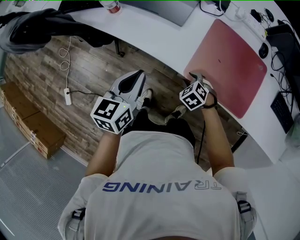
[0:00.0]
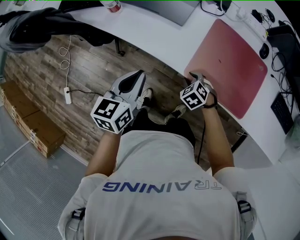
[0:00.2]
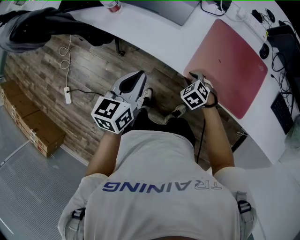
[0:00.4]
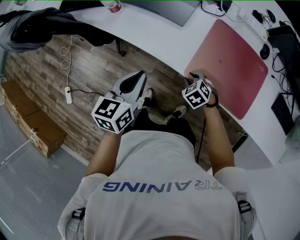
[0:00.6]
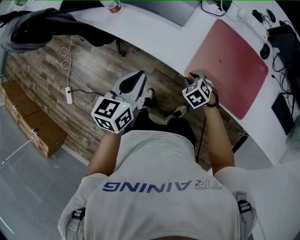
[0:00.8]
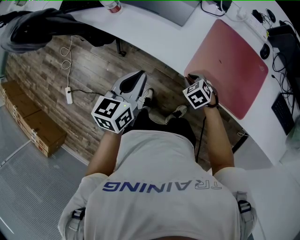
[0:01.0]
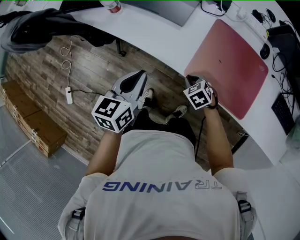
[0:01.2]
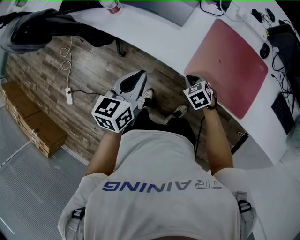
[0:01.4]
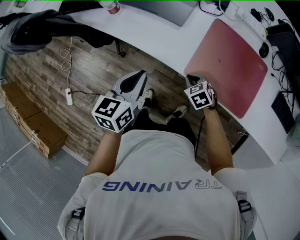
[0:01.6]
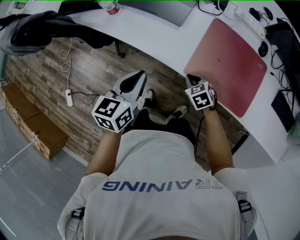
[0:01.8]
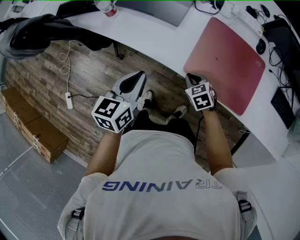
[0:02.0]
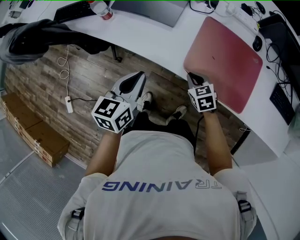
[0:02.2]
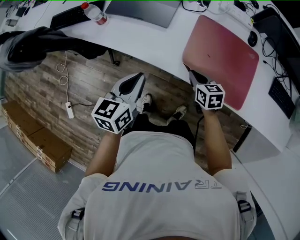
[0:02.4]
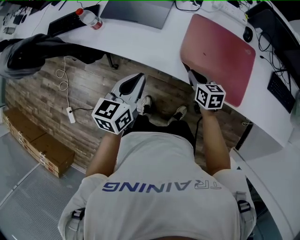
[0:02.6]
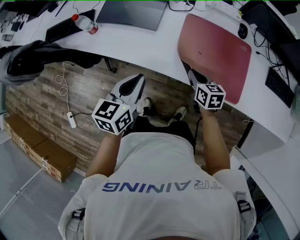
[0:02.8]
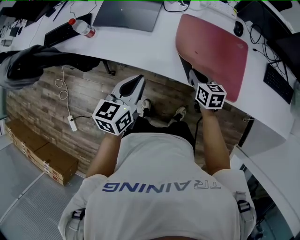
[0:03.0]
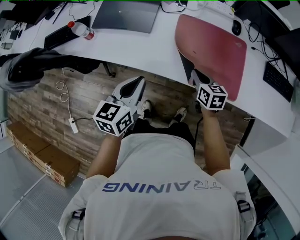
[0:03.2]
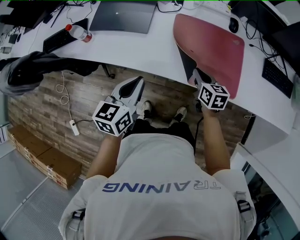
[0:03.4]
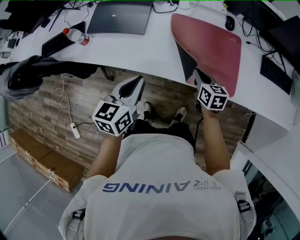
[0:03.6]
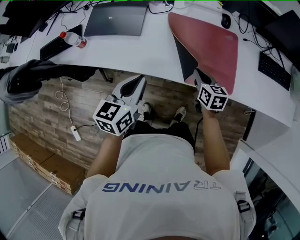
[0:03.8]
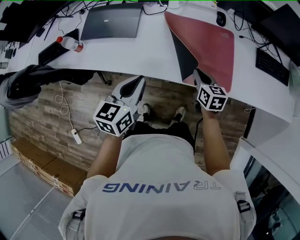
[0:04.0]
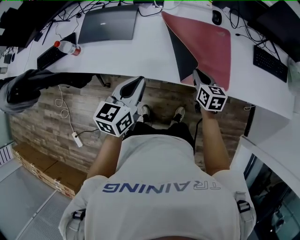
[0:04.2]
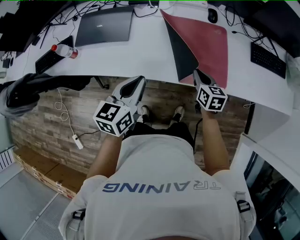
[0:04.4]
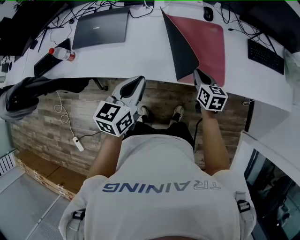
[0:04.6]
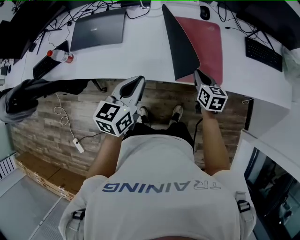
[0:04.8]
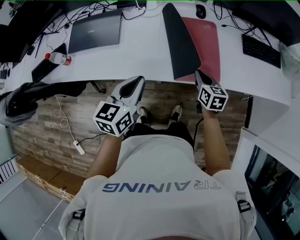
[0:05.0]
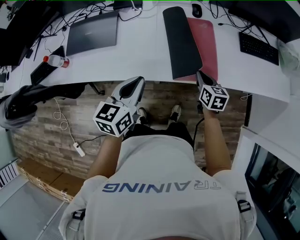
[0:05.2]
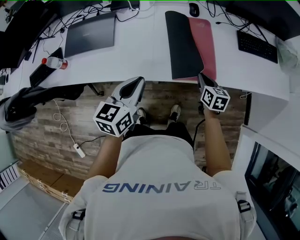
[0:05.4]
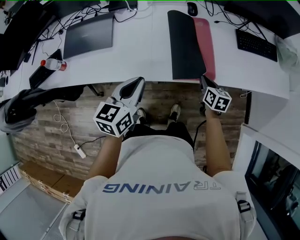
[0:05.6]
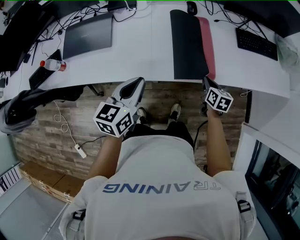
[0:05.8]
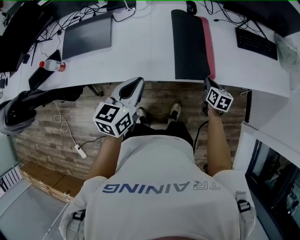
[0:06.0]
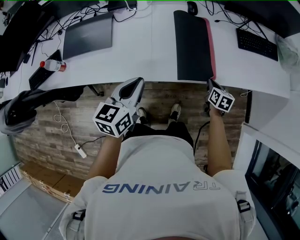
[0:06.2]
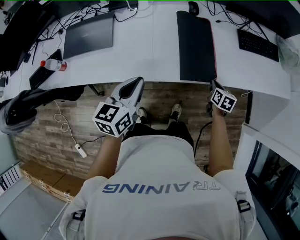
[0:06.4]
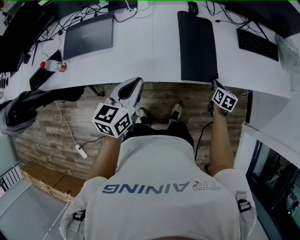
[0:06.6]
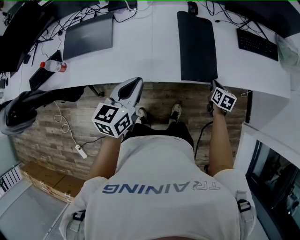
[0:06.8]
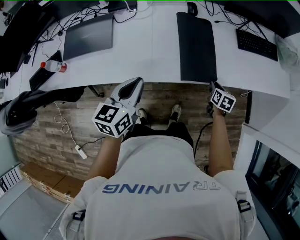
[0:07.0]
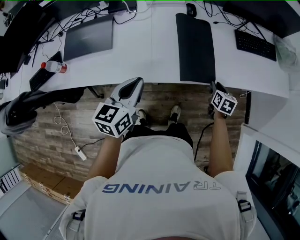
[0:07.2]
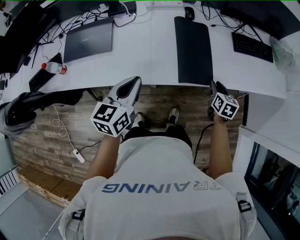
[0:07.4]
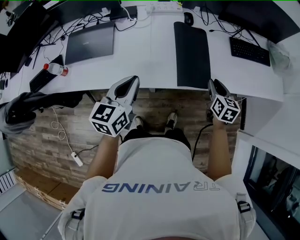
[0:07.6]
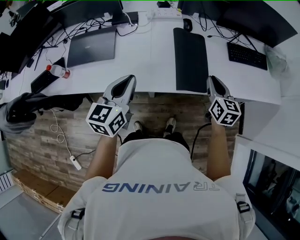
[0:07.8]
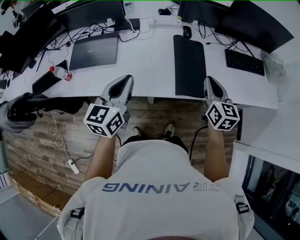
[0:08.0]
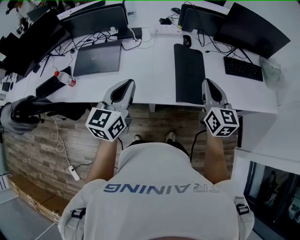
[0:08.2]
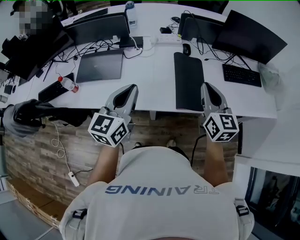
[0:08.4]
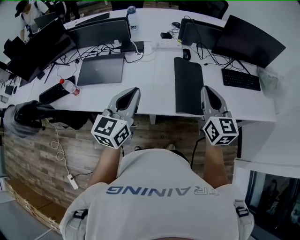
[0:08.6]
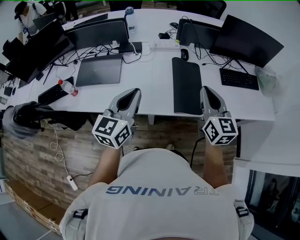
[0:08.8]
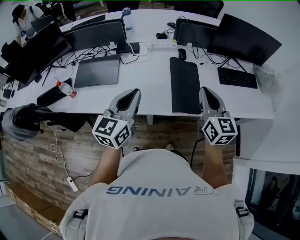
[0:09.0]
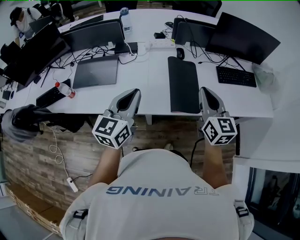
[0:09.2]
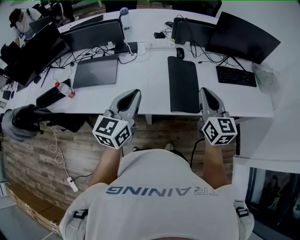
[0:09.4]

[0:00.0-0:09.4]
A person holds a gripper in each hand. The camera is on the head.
0:00.0 to 0:01.6: The right gripper closes up.
0:01.6 to 0:03.2: The right gripper goes about 15 cm to the right and upward, and twists roughly 40 degrees clockwise, seen from behind; the left gripper travels to the right by approximately 10 cm.
0:03.2 to 0:04.8: Both grippers travel together to the right, some 10 cm.
0:04.8 to 0:06.2: The right gripper goes about 15 cm to the right and downward, and changes its angle by roughly 20 degrees.
0:06.2 to 0:07.8: The left gripper travels upward by approximately 5 cm. Meanwhile the right gripper heads upward, covering some 20 cm, and changes its angle by roughly 30 degrees.
0:07.8 to 0:09.4: The left gripper travels upward by about 5 cm, while the right gripper moves upward, some 15 cm.

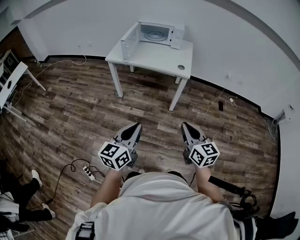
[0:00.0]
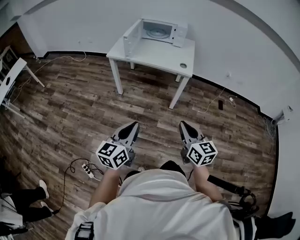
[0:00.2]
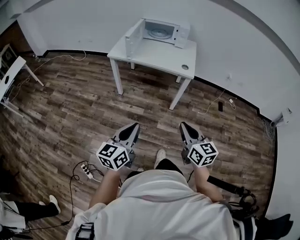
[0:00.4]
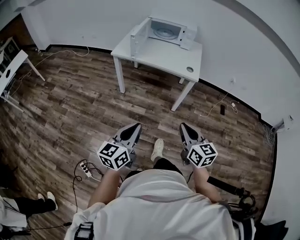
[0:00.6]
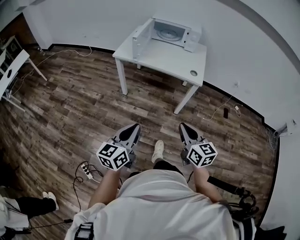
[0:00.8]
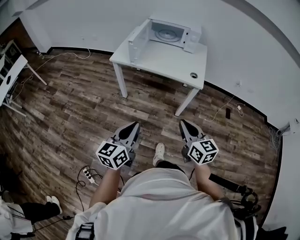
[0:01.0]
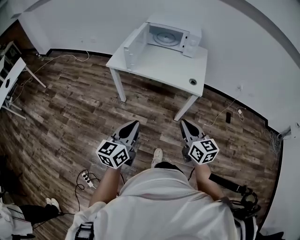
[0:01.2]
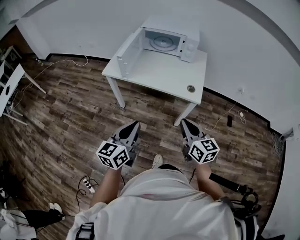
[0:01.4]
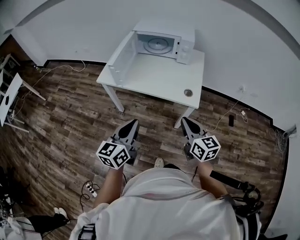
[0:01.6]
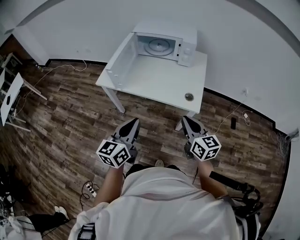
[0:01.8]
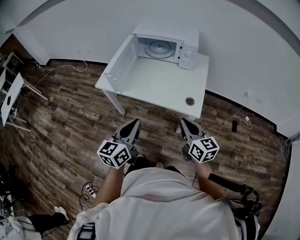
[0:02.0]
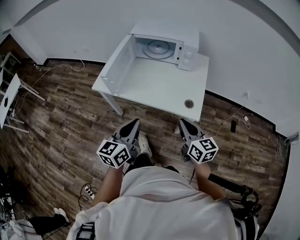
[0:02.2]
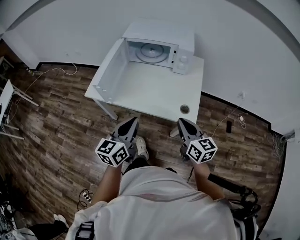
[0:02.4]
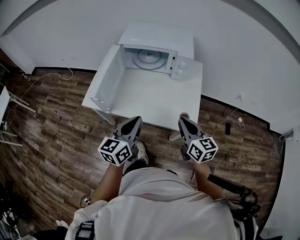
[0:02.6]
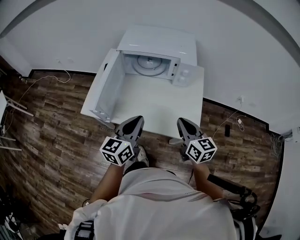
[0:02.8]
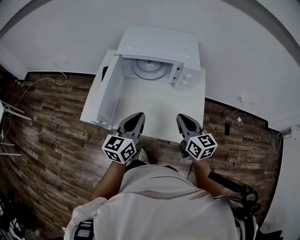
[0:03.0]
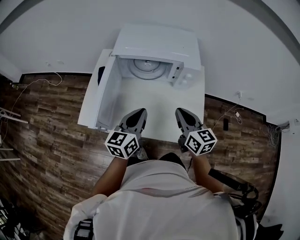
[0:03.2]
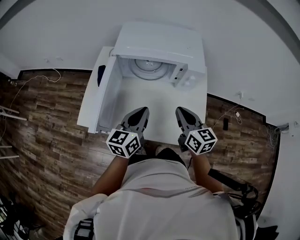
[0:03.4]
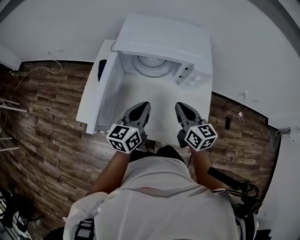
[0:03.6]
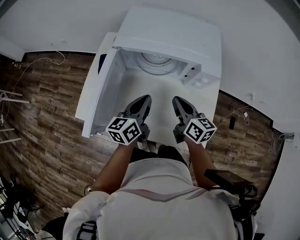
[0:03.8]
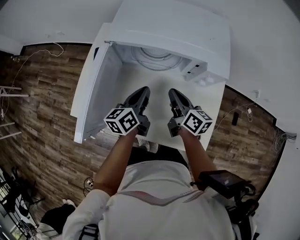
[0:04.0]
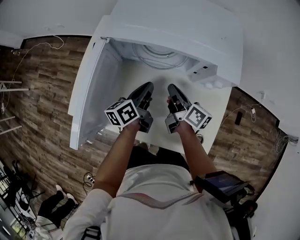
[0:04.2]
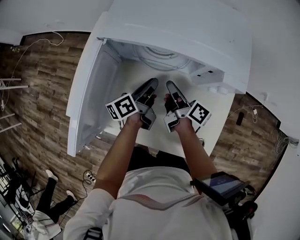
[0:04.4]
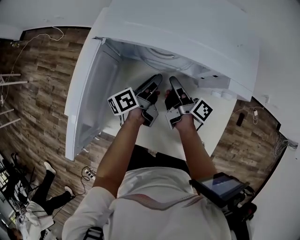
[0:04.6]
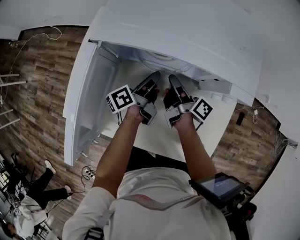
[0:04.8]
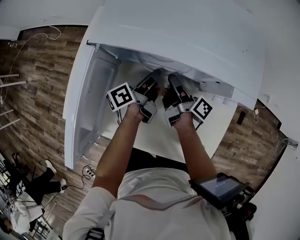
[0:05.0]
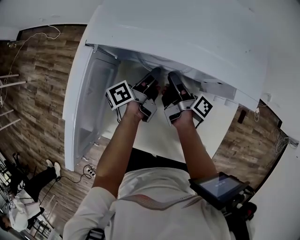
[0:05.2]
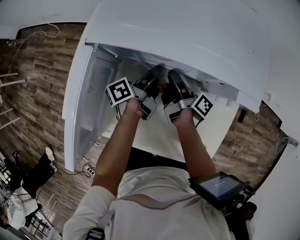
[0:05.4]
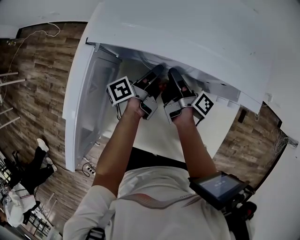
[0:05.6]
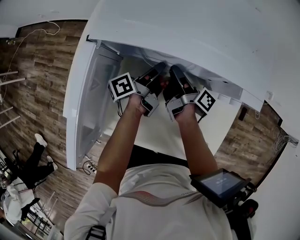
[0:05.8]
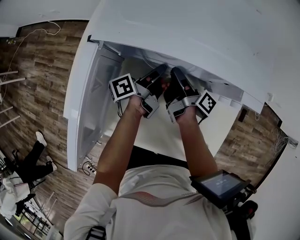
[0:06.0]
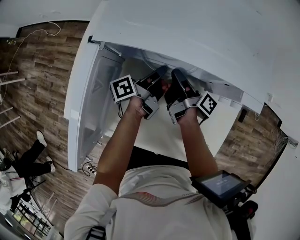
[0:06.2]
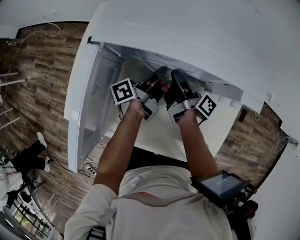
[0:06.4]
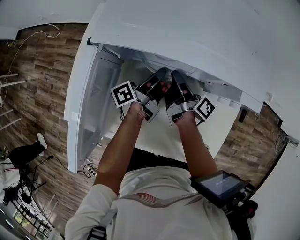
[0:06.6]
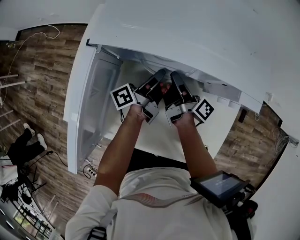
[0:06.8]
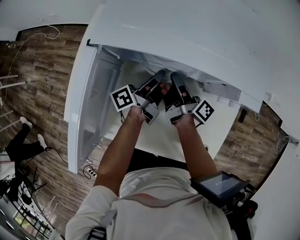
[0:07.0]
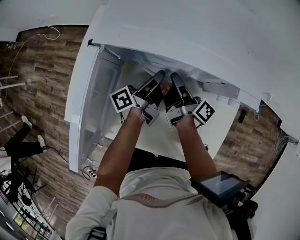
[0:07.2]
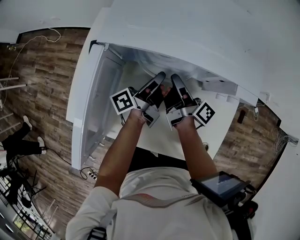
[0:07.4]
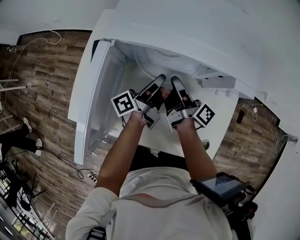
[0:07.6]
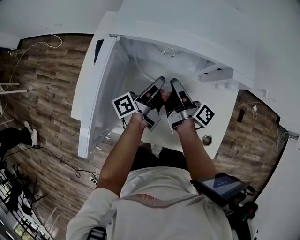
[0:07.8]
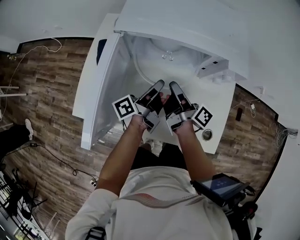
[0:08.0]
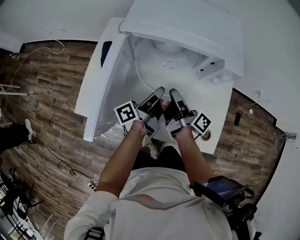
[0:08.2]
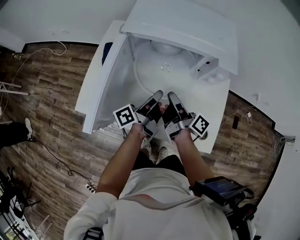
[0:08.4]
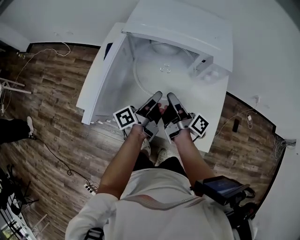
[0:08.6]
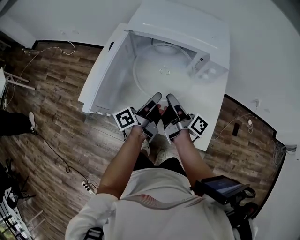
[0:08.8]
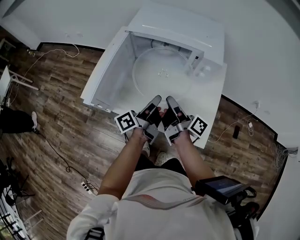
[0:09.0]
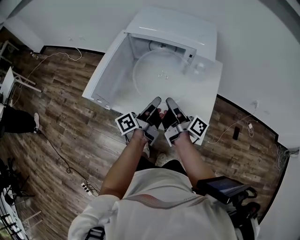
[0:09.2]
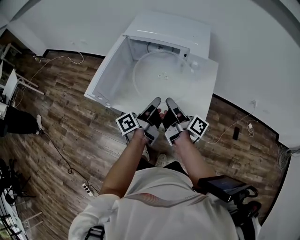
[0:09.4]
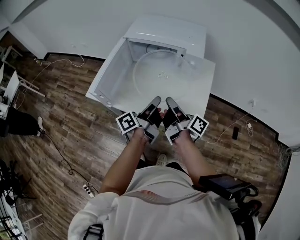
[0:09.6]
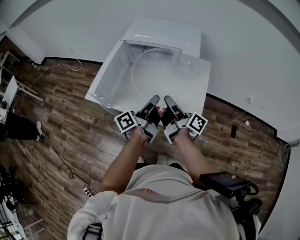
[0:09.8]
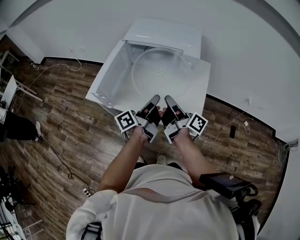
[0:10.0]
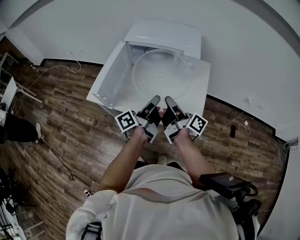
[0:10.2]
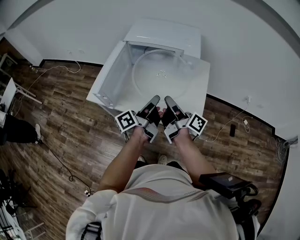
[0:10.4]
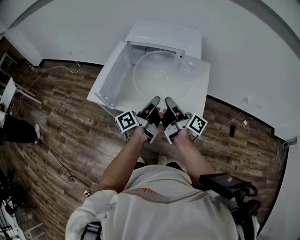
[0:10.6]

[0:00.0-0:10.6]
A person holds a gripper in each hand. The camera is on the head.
0:00.0 to 0:01.6: The two grippers go roughly 35 cm forward.
0:01.6 to 0:03.0: The two grippers go roughly 35 cm forward.
0:03.0 to 0:04.6: Both grippers move forward and downward, about 35 cm. The right gripper rolls clockwise, seen from behind, by roughly 60 degrees, and opens; the left gripper rolls counterclockwise, seen from behind, by some 50 degrees, and opens up.
0:04.6 to 0:06.0: The right gripper shifts by about 5 cm.
0:06.0 to 0:07.6: The right gripper goes about 10 cm upward and backward. Meanwhile the left gripper shifts some 10 cm backward and upward.
0:07.6 to 0:09.0: The two grippers go some 20 cm backward and upward.
0:09.0 to 0:10.6: Both grippers travel together backward and upward, some 15 cm.

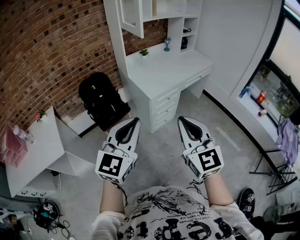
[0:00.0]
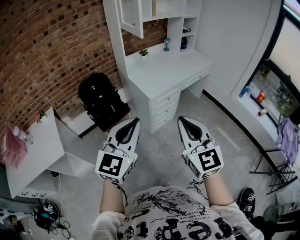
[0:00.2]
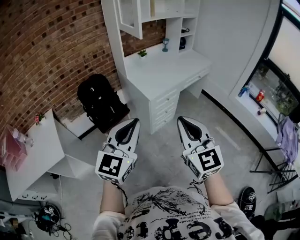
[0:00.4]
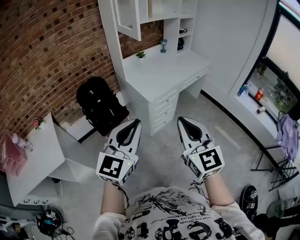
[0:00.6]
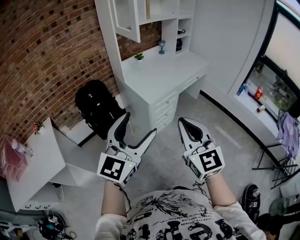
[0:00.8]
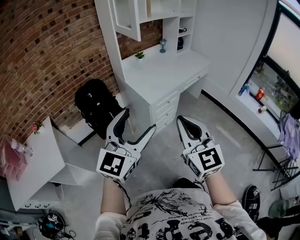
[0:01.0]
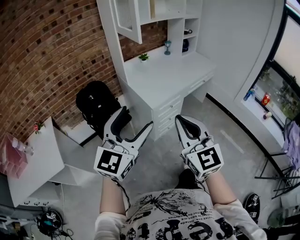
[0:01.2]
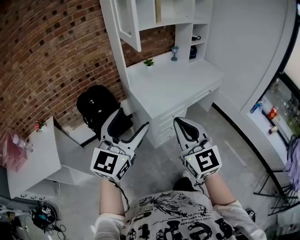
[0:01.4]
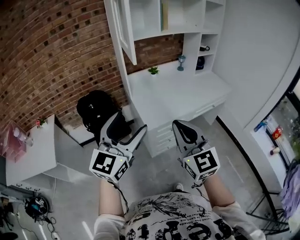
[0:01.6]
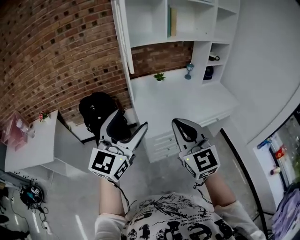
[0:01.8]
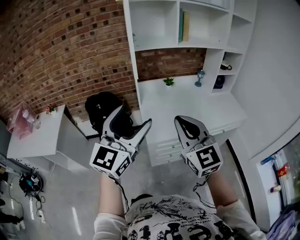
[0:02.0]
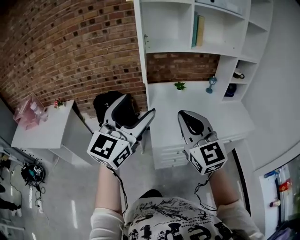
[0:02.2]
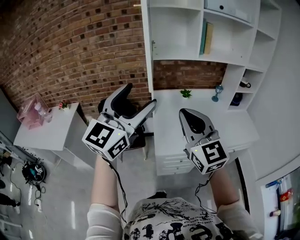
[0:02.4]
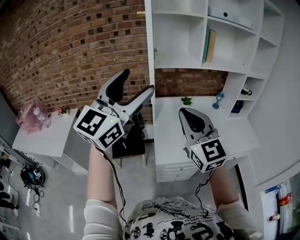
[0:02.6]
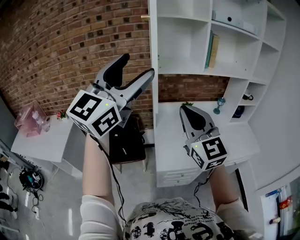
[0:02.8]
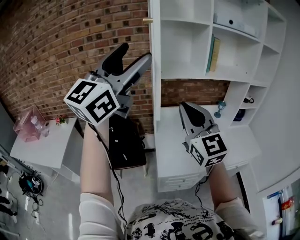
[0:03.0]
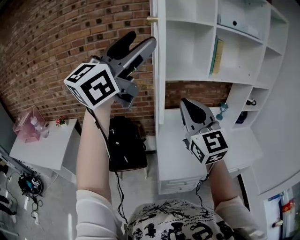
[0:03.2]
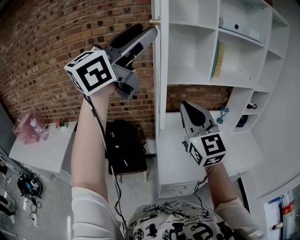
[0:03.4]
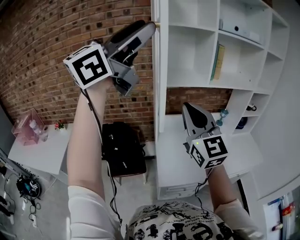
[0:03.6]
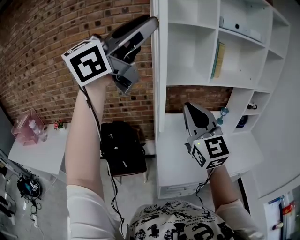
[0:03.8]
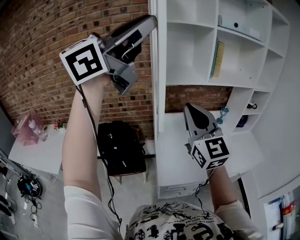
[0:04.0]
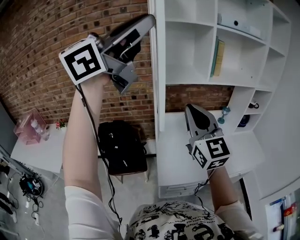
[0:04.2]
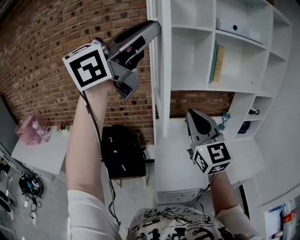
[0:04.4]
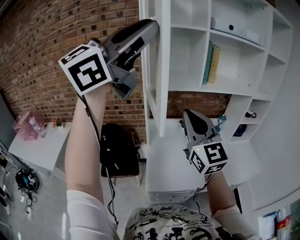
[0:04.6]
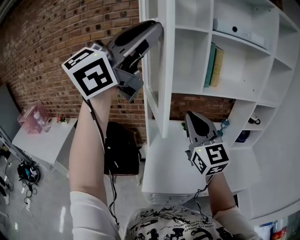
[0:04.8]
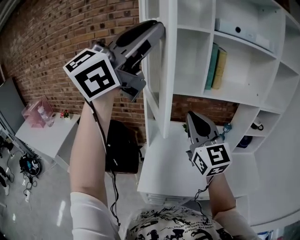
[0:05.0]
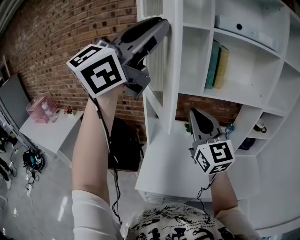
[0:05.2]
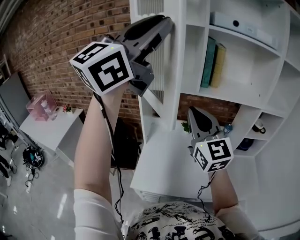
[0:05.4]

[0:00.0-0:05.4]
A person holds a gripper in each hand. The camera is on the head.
0:00.0 to 0:01.4: Both grippers travel together forward, some 20 cm. The left gripper opens its fingers.
0:01.4 to 0:02.8: Both grippers move forward and upward, some 40 cm. The right gripper rotates approximately 30 degrees; the left gripper rotates approximately 20 degrees.
0:02.8 to 0:04.0: The right gripper moves forward, about 10 cm, while the left gripper is displaced upward and forward by approximately 15 cm, rotates some 30 degrees, and closes up.
0:04.0 to 0:05.4: The grippers both shift to the right and forward by approximately 20 cm. The left gripper swivels roughly 30 degrees.
